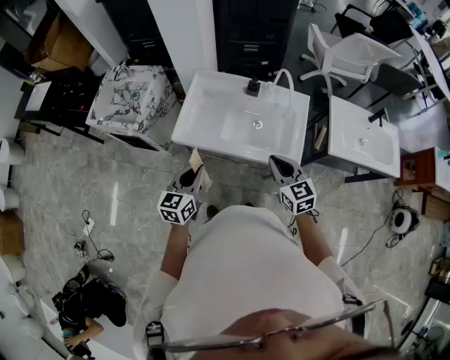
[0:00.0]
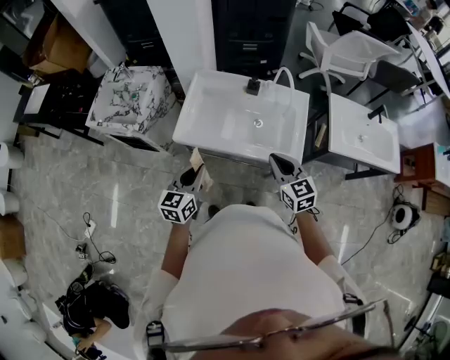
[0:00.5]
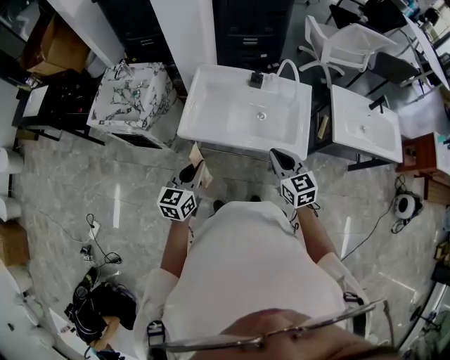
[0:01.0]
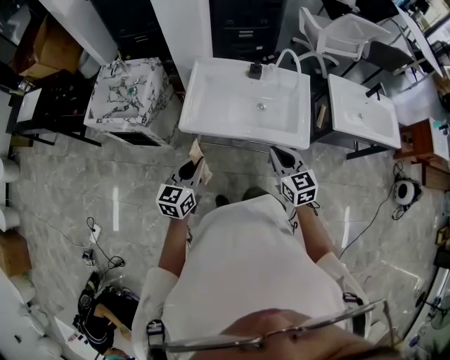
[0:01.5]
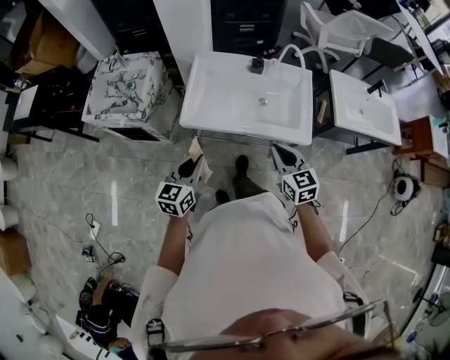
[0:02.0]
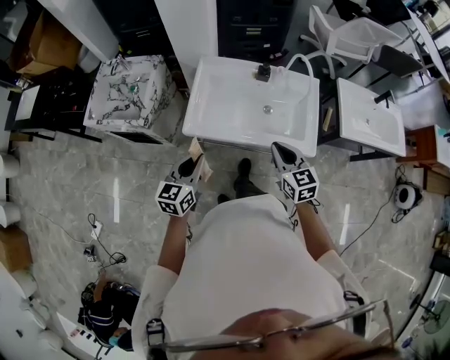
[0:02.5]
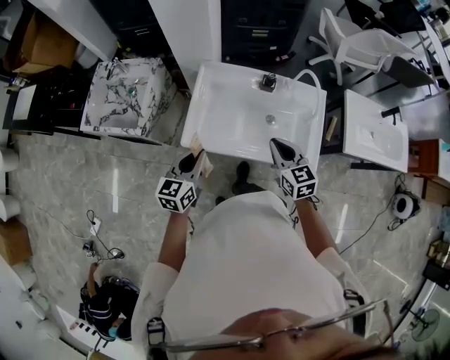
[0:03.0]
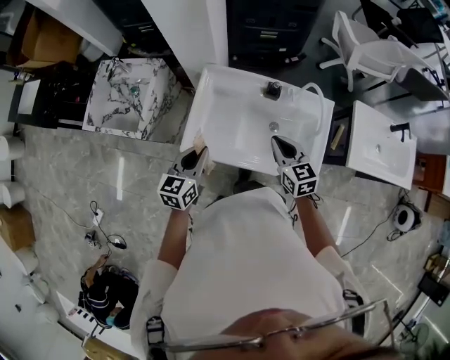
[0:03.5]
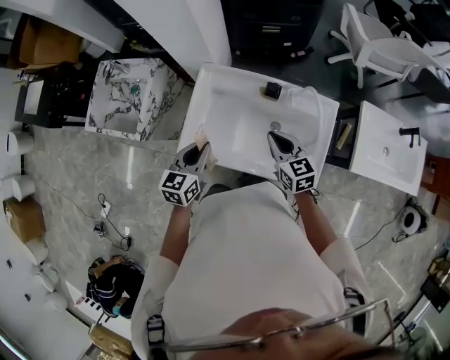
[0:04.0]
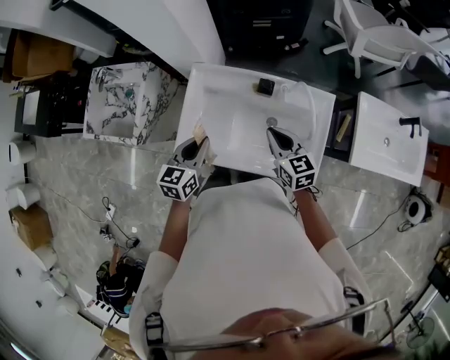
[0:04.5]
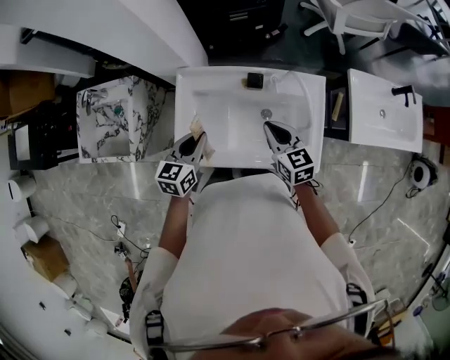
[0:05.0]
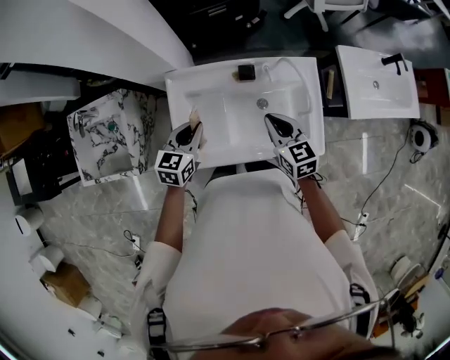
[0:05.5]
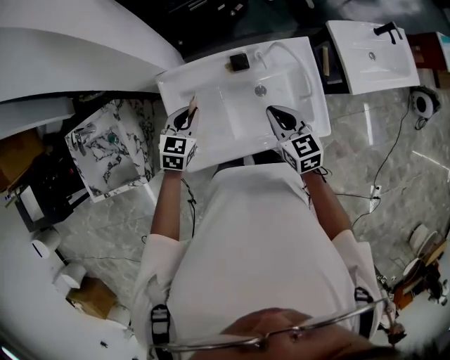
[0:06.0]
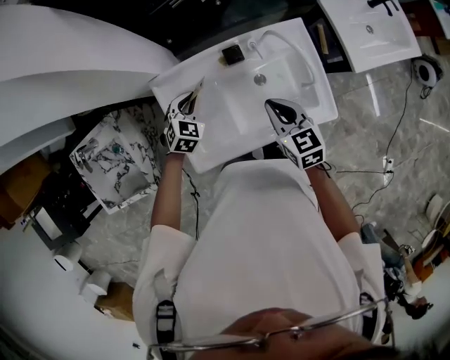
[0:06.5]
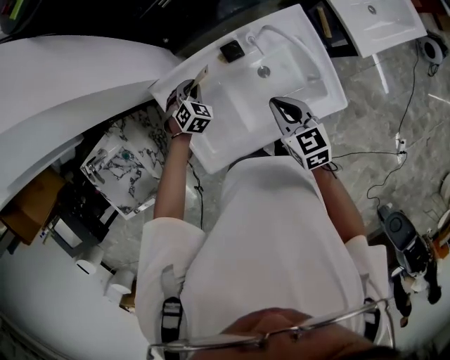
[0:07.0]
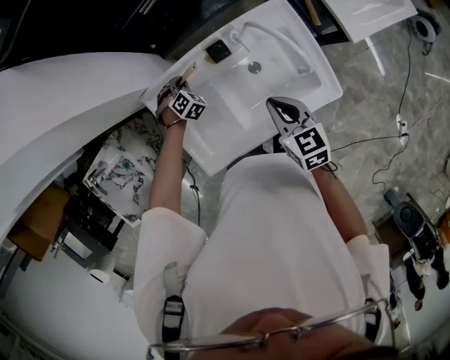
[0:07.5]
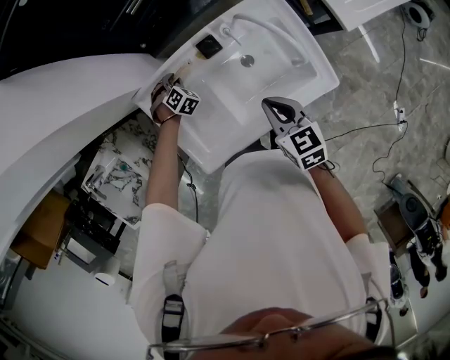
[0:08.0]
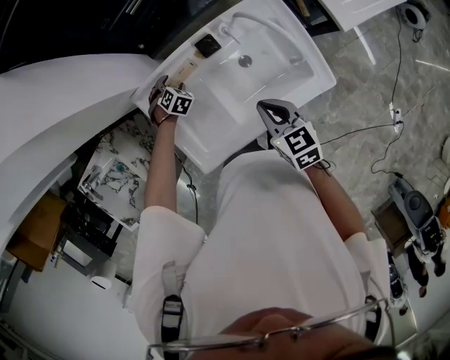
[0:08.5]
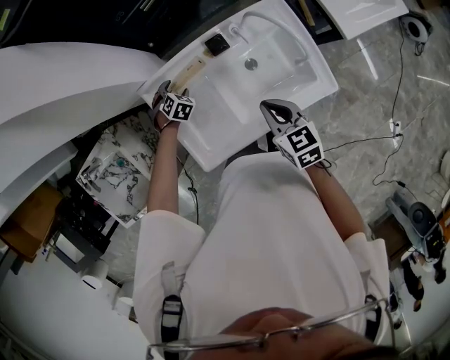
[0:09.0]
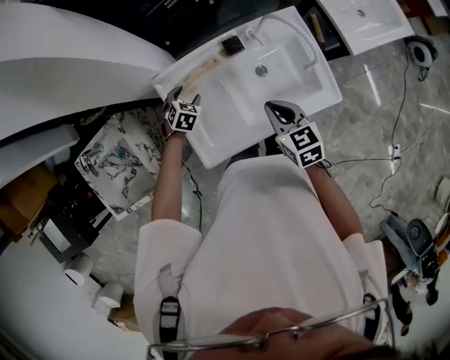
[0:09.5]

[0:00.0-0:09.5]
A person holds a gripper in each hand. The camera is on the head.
0:00.0 to 0:02.0: The two grippers go approximately 10 cm to the left.
0:02.0 to 0:04.0: Both grippers travel together forward, roughly 30 cm.
0:04.0 to 0:05.5: The left gripper travels forward by some 10 cm, and turns by approximately 20 degrees.
0:05.5 to 0:07.5: The right gripper swivels some 20 degrees, while the left gripper moves downward and forward, some 30 cm, and rolls clockwise, seen from behind, by roughly 60 degrees.
0:07.5 to 0:09.5: The right gripper shifts roughly 5 cm to the left; the left gripper travels backward, upward and to the left by some 10 cm, changes its angle by roughly 30 degrees, and opens its fingers.

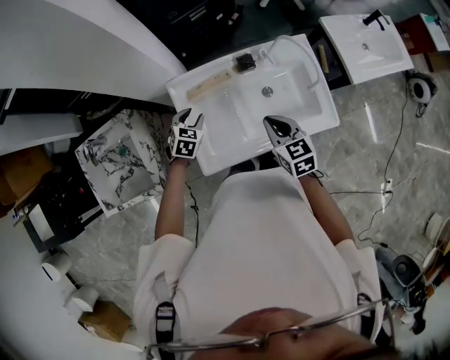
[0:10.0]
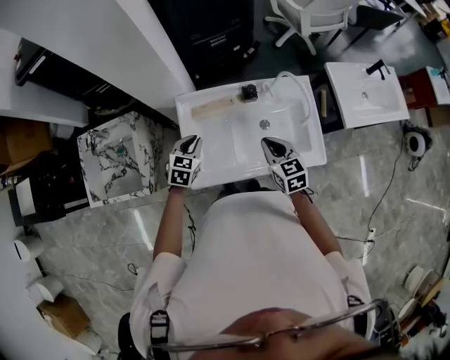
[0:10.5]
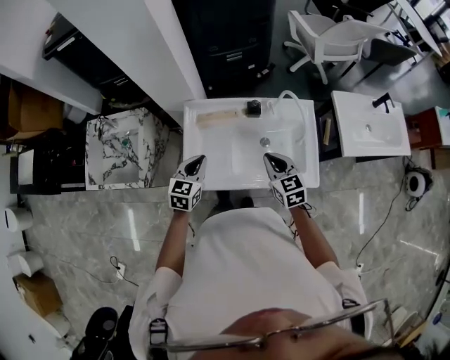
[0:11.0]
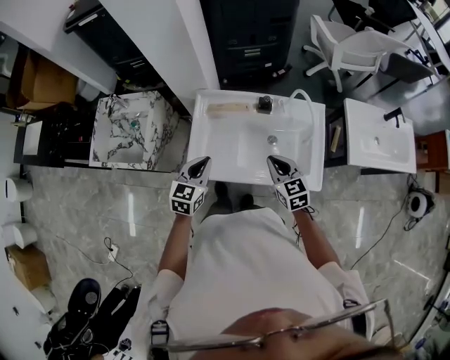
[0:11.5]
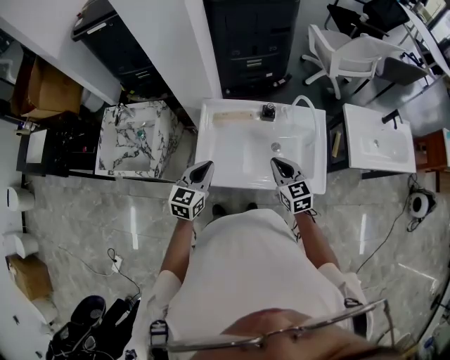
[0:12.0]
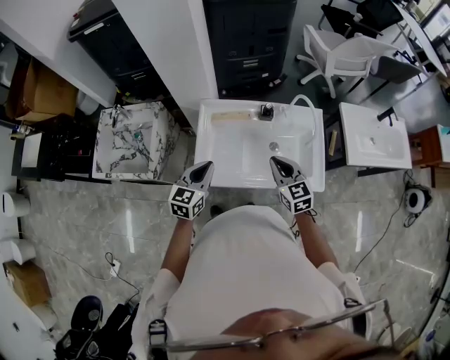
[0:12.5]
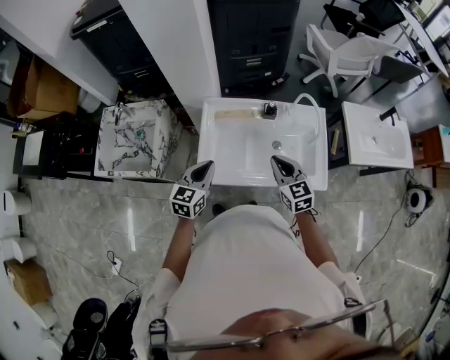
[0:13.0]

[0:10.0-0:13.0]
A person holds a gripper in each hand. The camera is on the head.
0:10.0 to 0:11.5: The right gripper heads to the right, covering some 5 cm, and turns by some 20 degrees. The left gripper moves backward and upward, some 25 cm, changes its angle by approximately 40 degrees, and closes.
0:11.5 to 0:13.0: The right gripper shifts by some 5 cm.

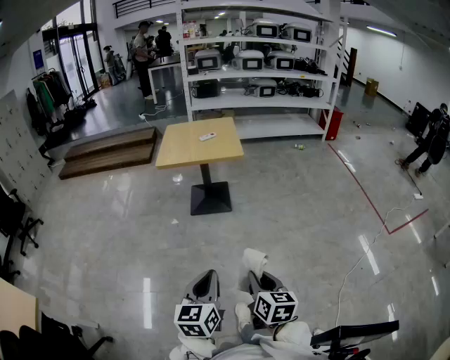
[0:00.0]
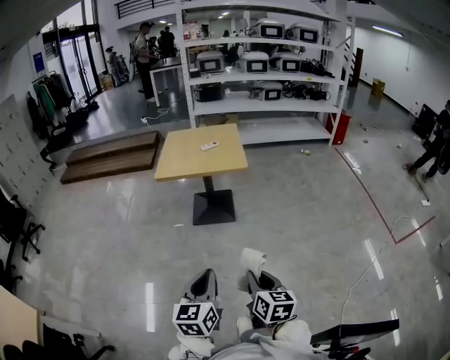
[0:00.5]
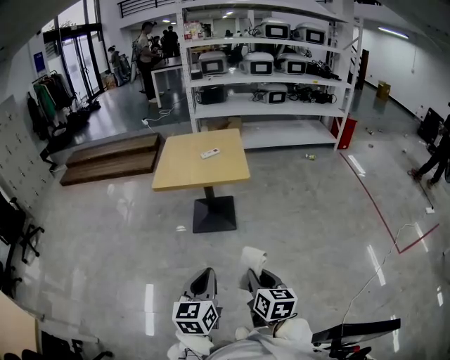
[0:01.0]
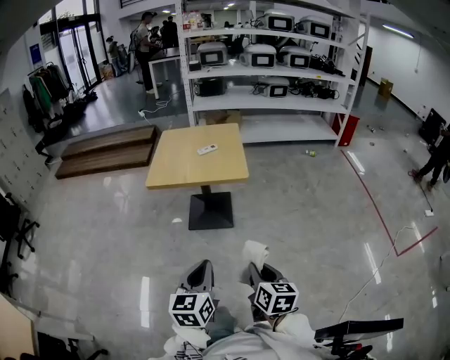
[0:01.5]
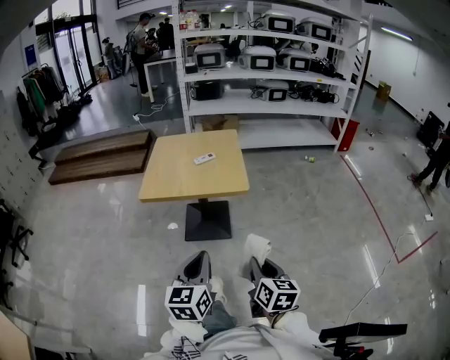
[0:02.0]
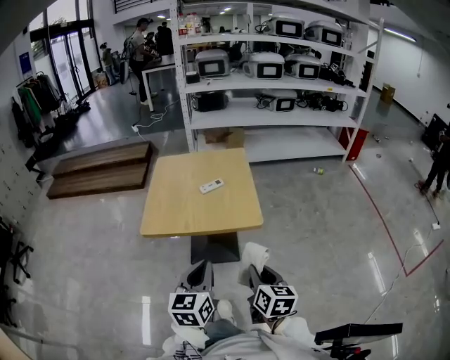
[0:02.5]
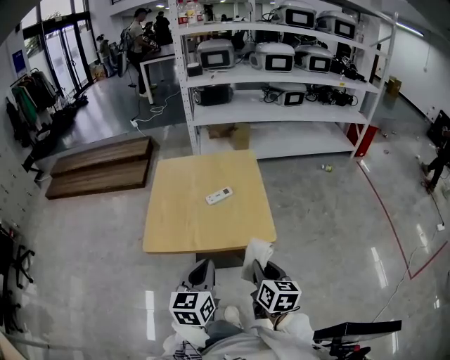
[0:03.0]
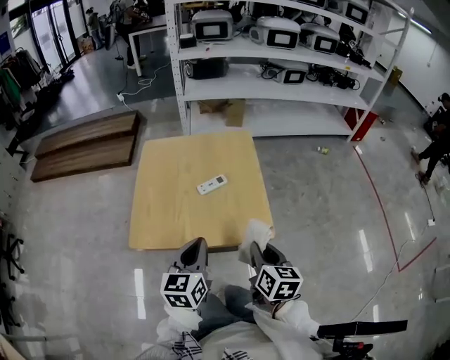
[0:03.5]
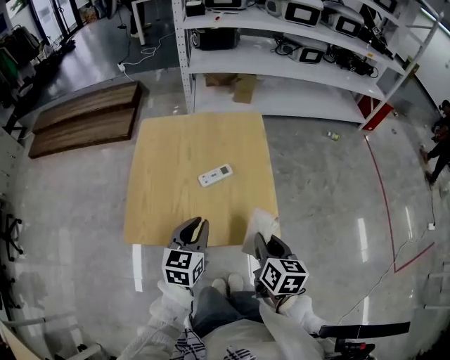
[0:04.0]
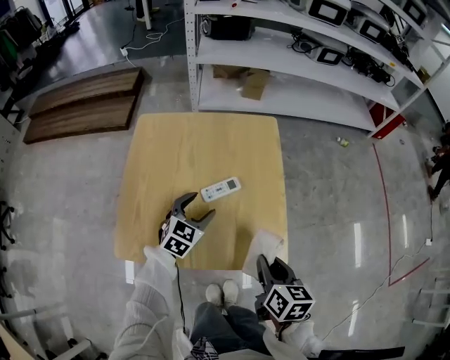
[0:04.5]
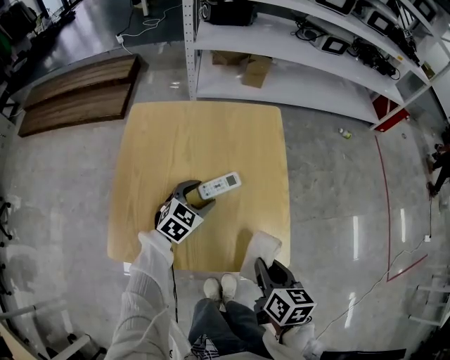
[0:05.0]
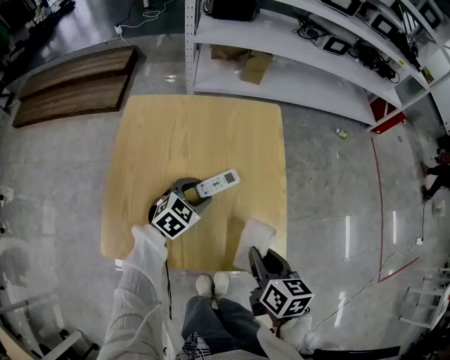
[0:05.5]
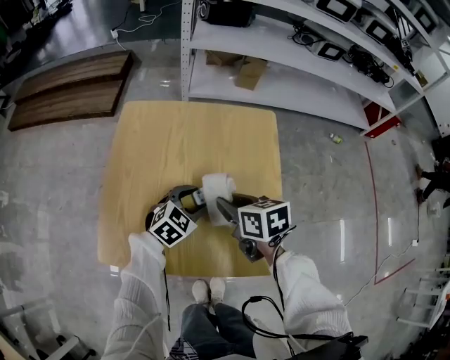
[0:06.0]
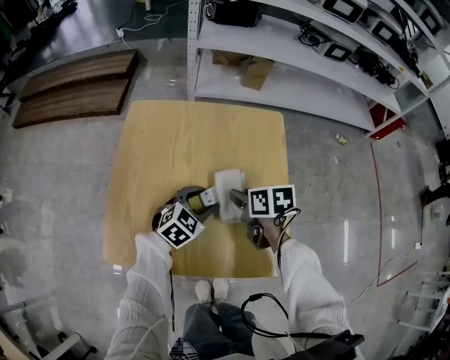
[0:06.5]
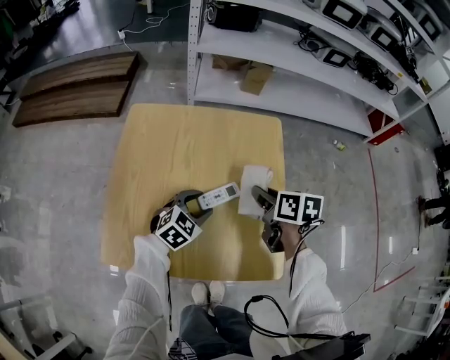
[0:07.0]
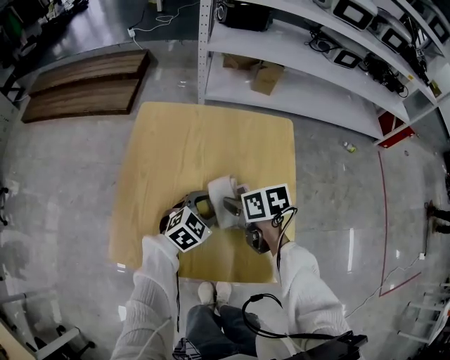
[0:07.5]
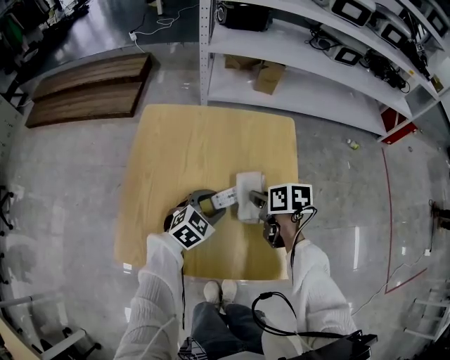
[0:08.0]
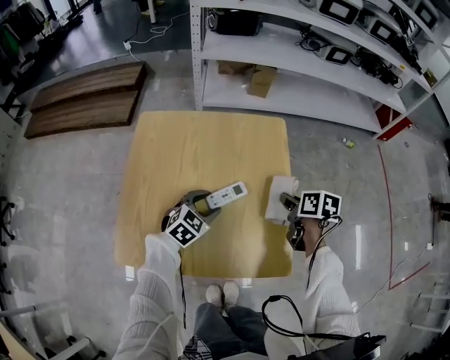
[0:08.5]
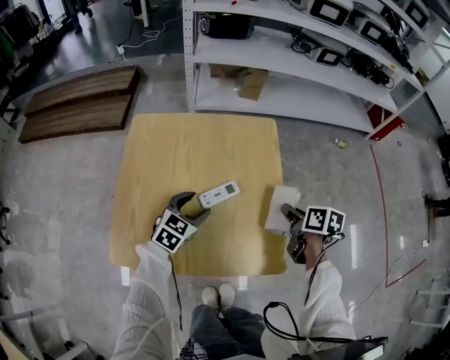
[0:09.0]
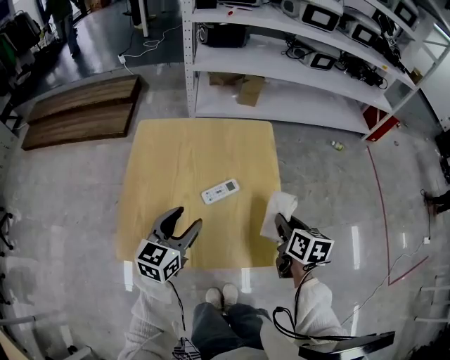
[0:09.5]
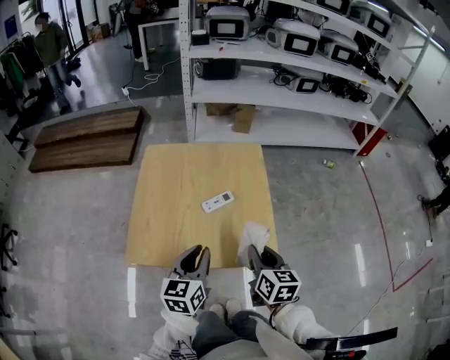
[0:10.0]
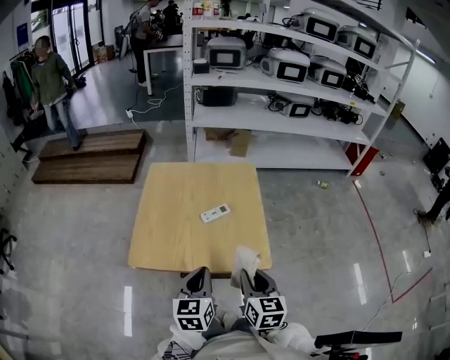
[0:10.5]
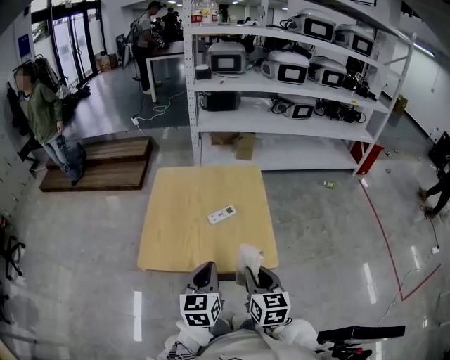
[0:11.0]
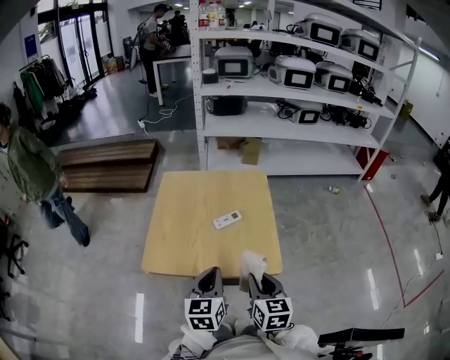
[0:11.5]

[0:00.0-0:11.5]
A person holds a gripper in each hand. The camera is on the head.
0:00.0 to 0:02.0: The two grippers go about 40 cm forward.
0:02.0 to 0:04.0: The pair of grippers is taken forward, roughly 40 cm.
0:04.0 to 0:06.0: The left gripper moves forward and downward, approximately 20 cm, rotates roughly 40 degrees, and opens up; the right gripper shifts approximately 25 cm forward and to the left, and changes its angle by some 30 degrees.
0:06.0 to 0:07.5: The right gripper moves about 10 cm to the right and comes back.
0:07.5 to 0:09.5: The left gripper goes roughly 15 cm upward, backward and to the left, and turns by approximately 40 degrees, while the right gripper heads to the right, covering some 20 cm, and turns by about 40 degrees.
0:09.5 to 0:11.5: The right gripper moves backward and to the left, about 20 cm, and turns by about 20 degrees. The left gripper travels backward by about 15 cm, and closes up.

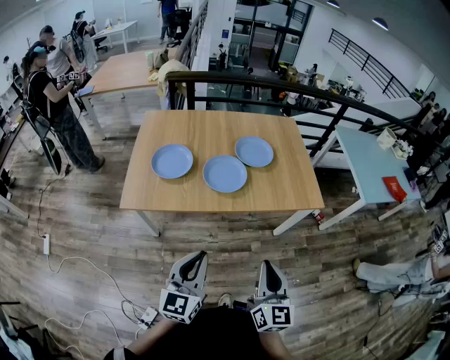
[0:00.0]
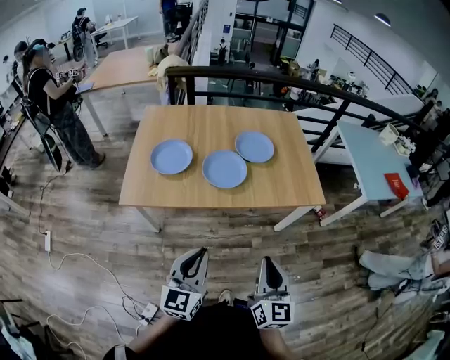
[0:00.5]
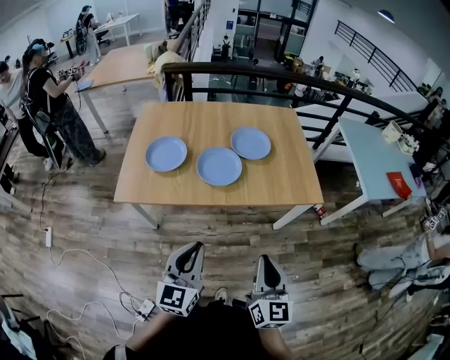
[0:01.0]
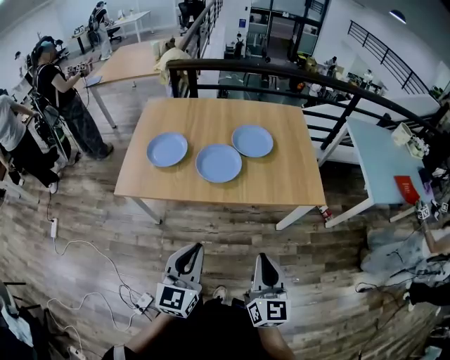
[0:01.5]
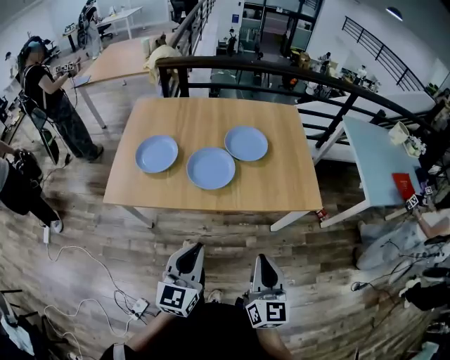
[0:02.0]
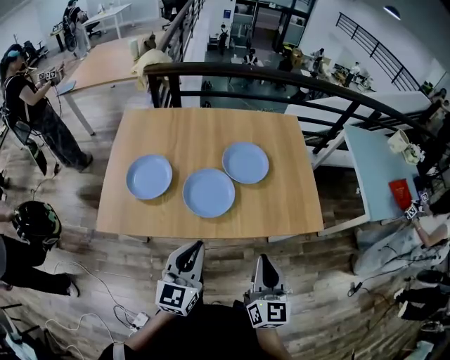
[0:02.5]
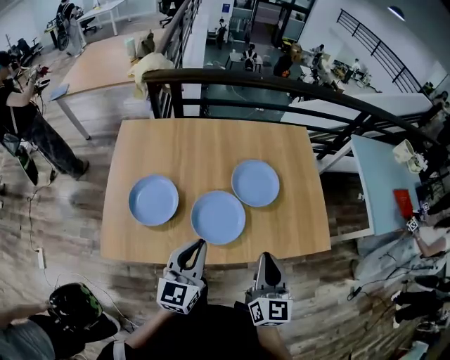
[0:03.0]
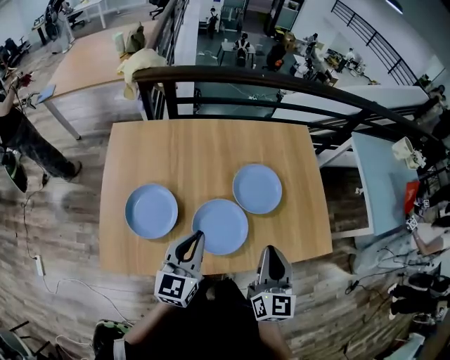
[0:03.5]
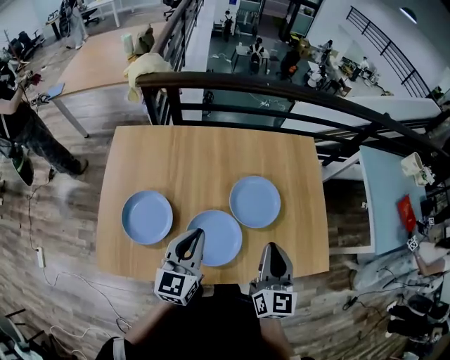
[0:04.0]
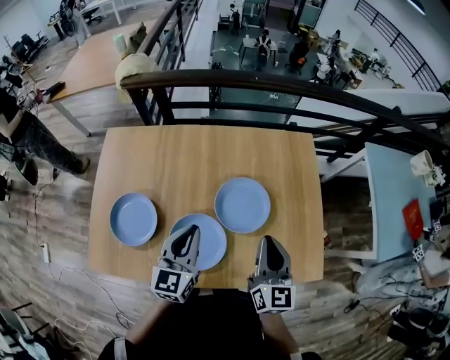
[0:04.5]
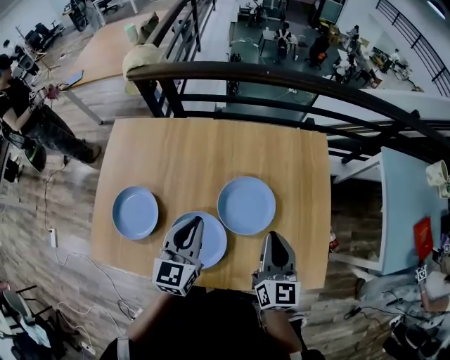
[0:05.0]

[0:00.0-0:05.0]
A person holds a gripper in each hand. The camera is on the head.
0:00.0 to 0:02.5: The two grippers go about 25 cm forward.
0:02.5 to 0:05.0: The grippers both shift forward by some 35 cm.
